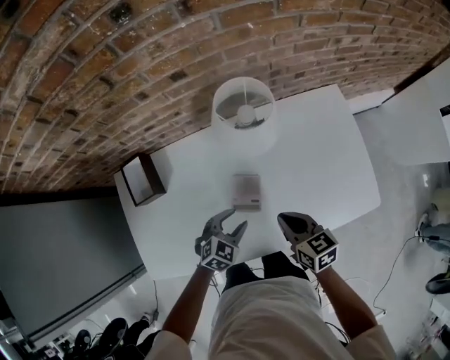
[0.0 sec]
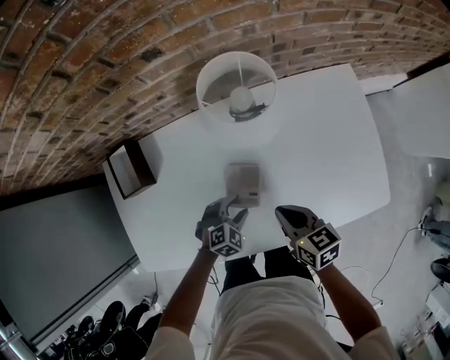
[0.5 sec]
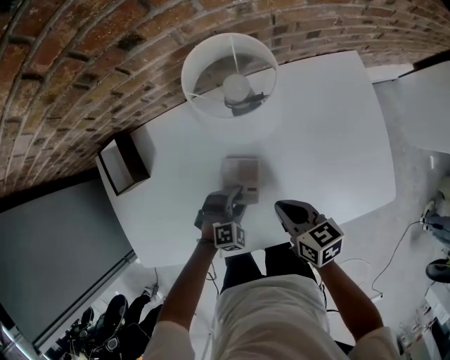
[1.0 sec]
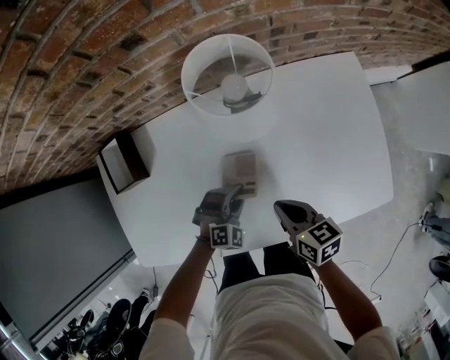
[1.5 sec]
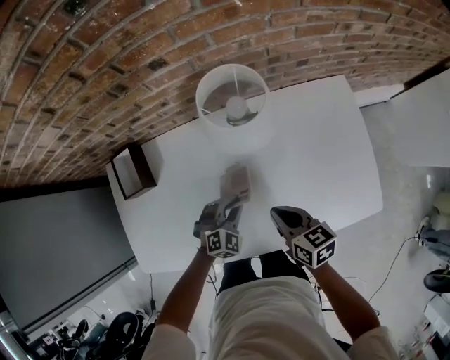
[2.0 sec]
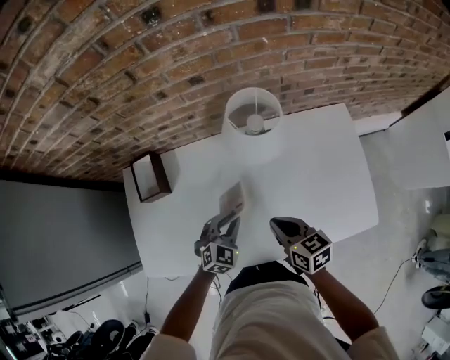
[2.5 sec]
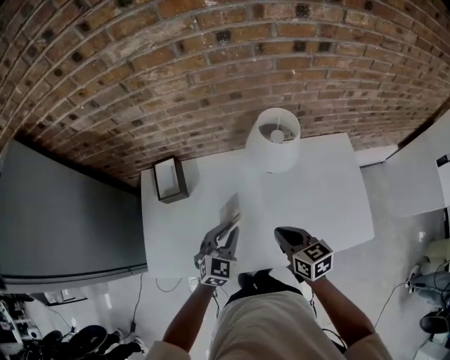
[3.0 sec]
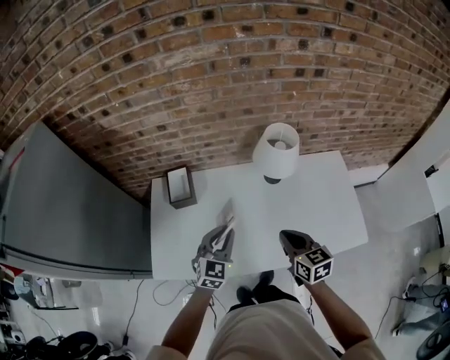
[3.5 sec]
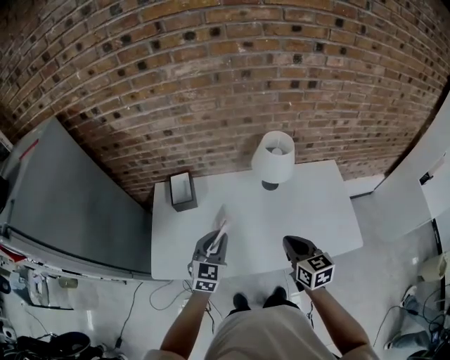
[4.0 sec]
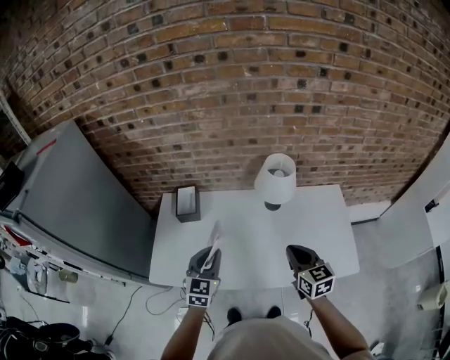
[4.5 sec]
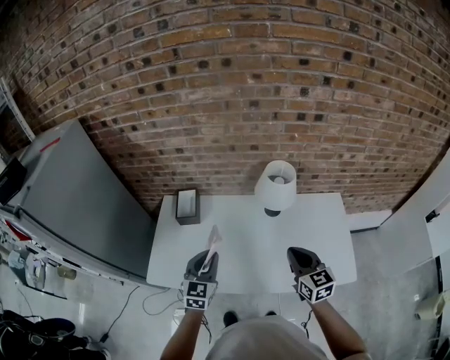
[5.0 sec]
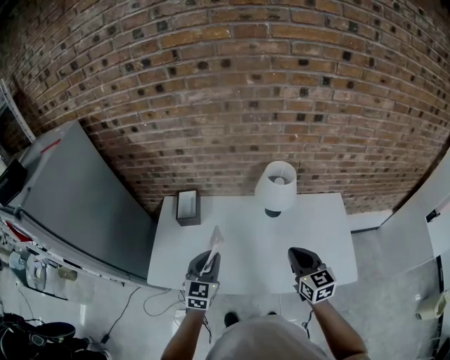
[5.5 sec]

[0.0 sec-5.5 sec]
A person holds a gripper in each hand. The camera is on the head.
0.0 sec to 2.0 sec: The left gripper travels downward by roughly 5 cm, turns by about 20 degrees, and closes.
2.0 sec to 3.5 sec: The left gripper travels upward and to the left by approximately 30 cm, and turns by roughly 40 degrees; the right gripper moves upward, to the left and backward, about 20 cm, and changes its angle by about 20 degrees.
3.5 sec to 5.5 sec: The right gripper is displaced to the right and upward by some 10 cm, while the left gripper travels upward and backward by about 10 cm.

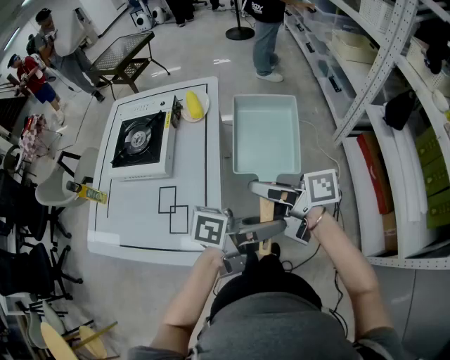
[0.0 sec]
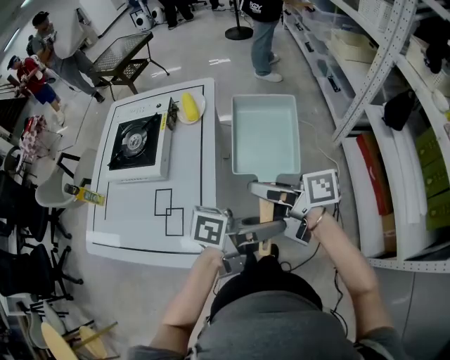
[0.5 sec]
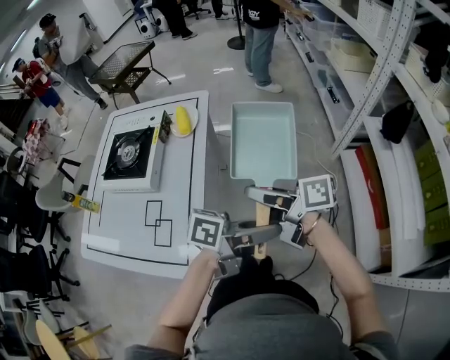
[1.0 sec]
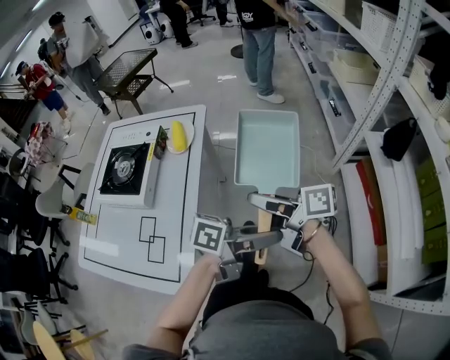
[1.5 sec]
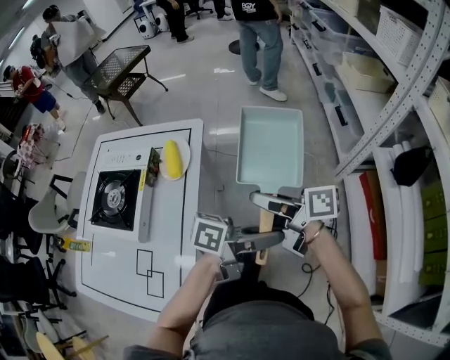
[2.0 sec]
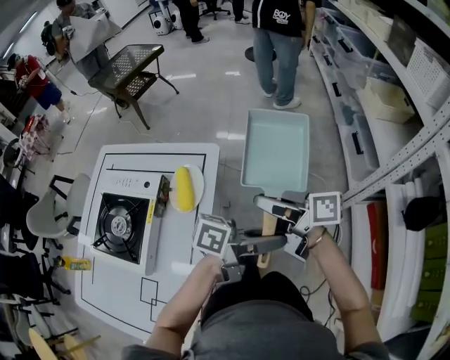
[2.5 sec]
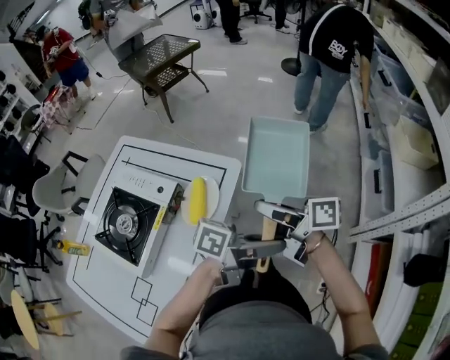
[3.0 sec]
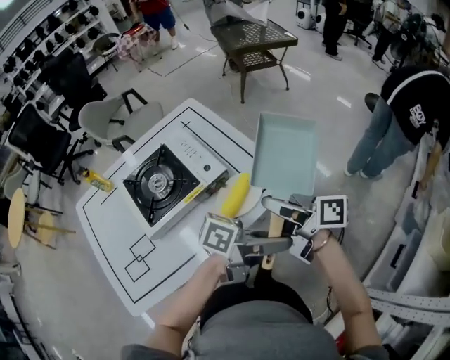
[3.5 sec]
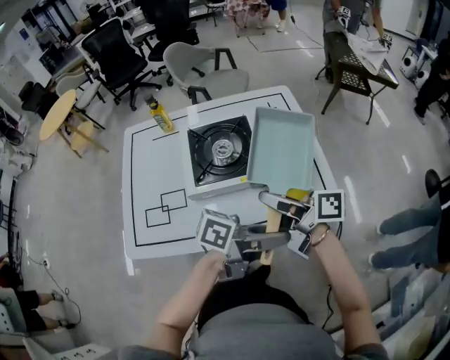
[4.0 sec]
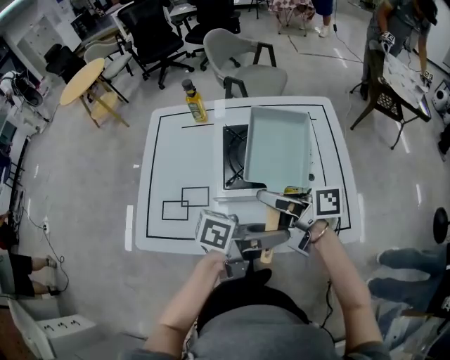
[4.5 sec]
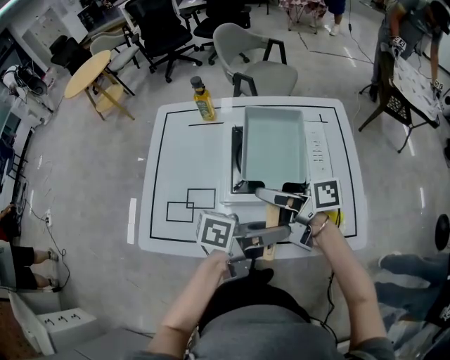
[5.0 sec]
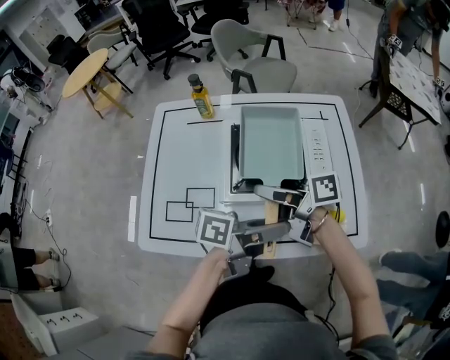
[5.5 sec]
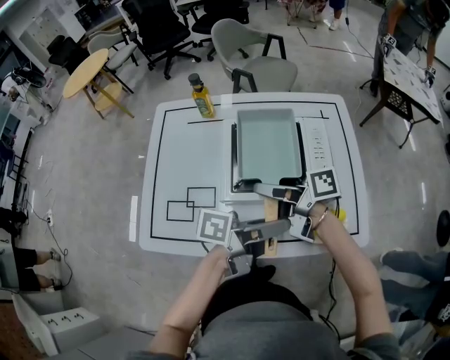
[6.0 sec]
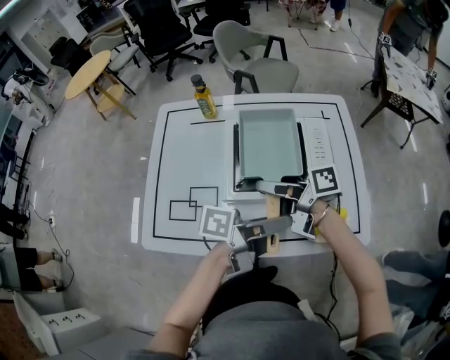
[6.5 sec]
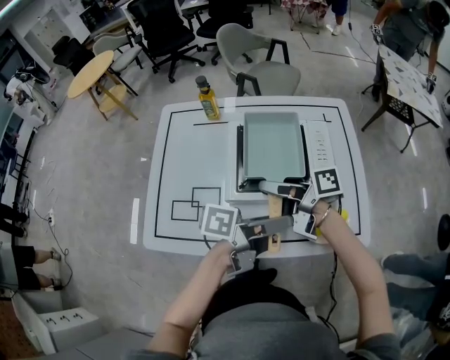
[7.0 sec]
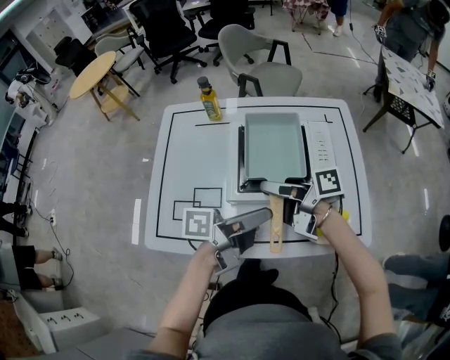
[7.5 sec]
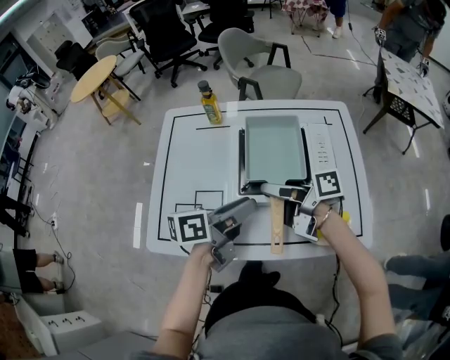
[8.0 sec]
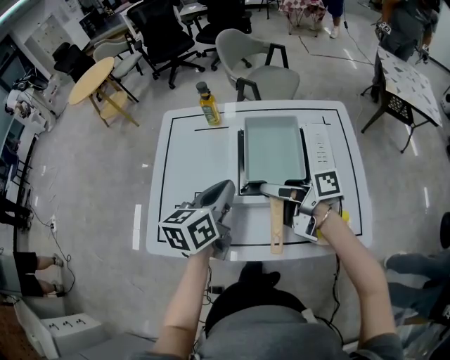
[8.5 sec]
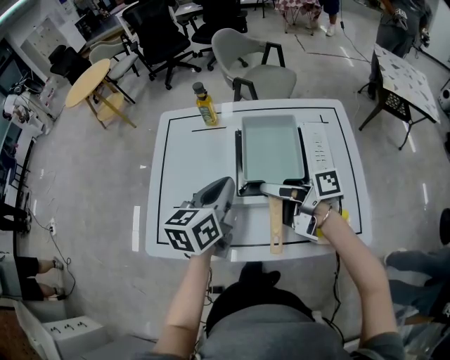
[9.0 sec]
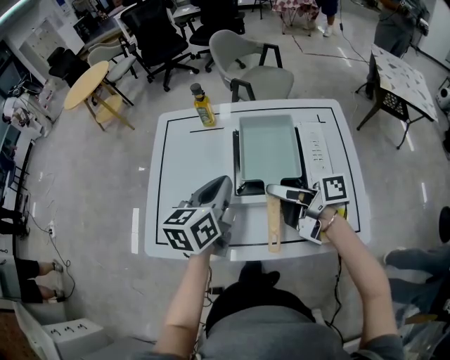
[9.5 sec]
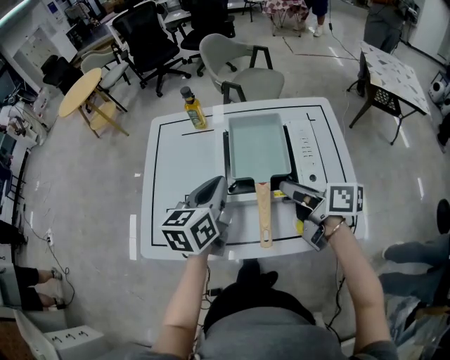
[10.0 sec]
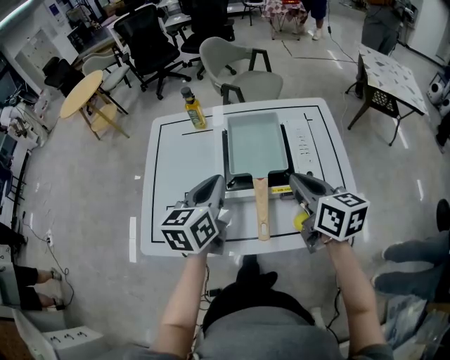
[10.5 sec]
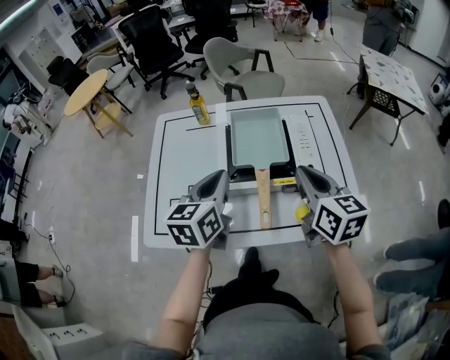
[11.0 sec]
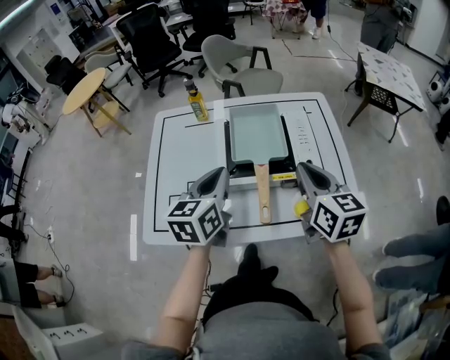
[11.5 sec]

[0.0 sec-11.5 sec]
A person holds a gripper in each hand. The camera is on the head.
0.0 sec to 2.0 sec: The left gripper ends up roughly 25 cm from where it was. Meanwhile the right gripper moves some 25 cm.
2.0 sec to 4.0 sec: The right gripper shifts by roughly 30 cm, and rotates some 70 degrees; the left gripper shifts by about 30 cm, and rotates some 70 degrees.
4.0 sec to 6.0 sec: The right gripper ends up approximately 15 cm from where it was, and changes its angle by roughly 30 degrees, while the left gripper ends up approximately 15 cm from where it was, and swivels some 30 degrees.
6.0 sec to 7.5 sec: The left gripper ends up approximately 5 cm from where it was.
7.5 sec to 9.5 sec: The left gripper changes place by roughly 15 cm, turns by about 60 degrees, and closes up.
9.5 sec to 11.5 sec: The right gripper shifts roughly 10 cm to the right and upward, swivels about 70 degrees, and closes.

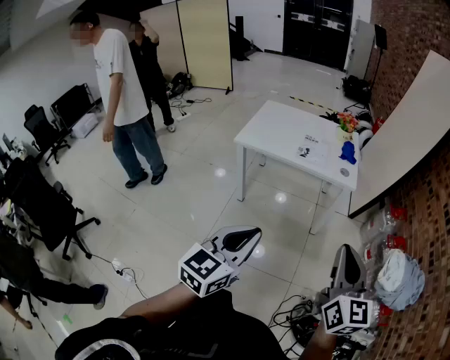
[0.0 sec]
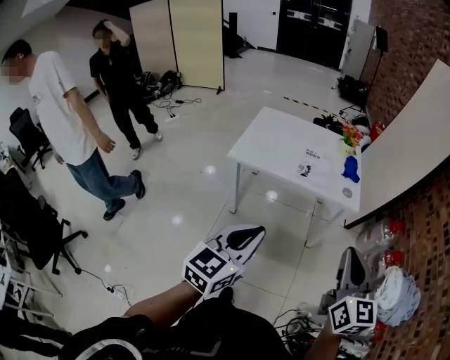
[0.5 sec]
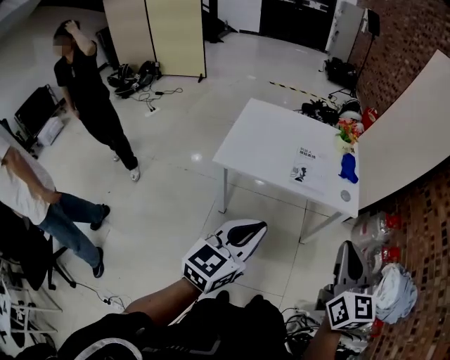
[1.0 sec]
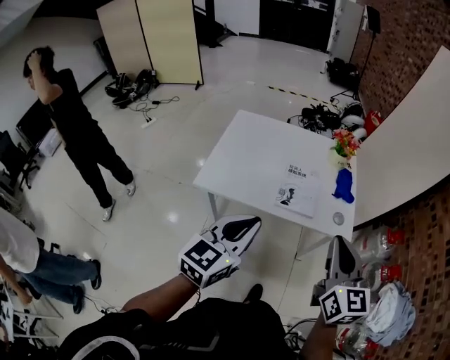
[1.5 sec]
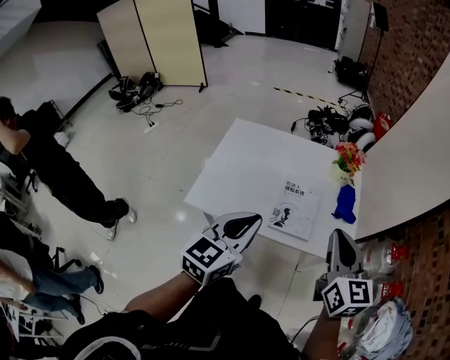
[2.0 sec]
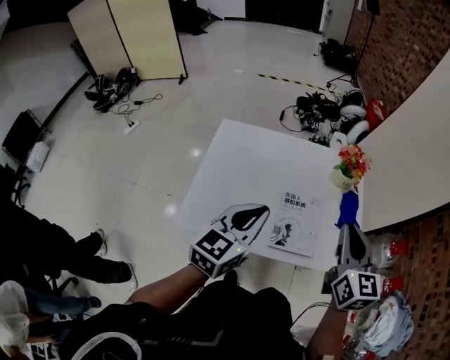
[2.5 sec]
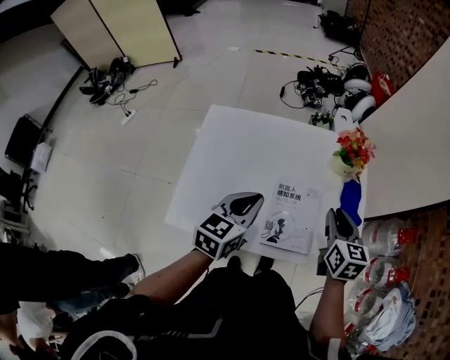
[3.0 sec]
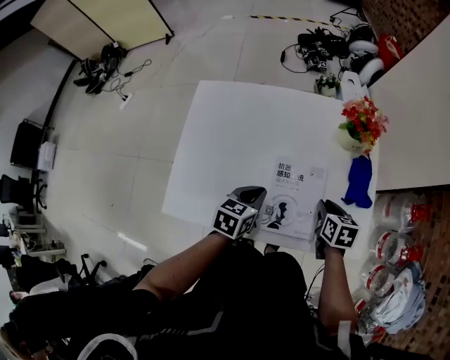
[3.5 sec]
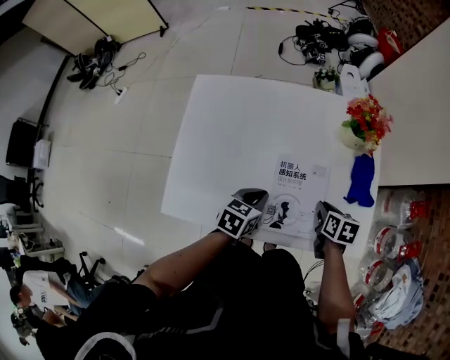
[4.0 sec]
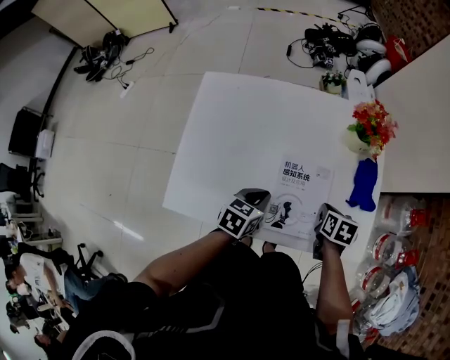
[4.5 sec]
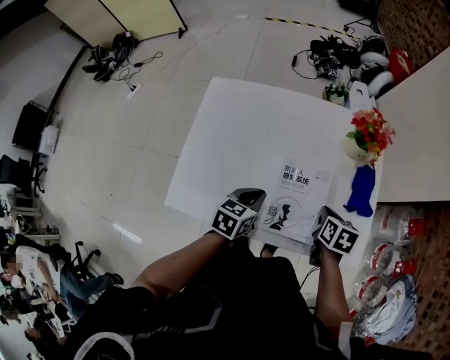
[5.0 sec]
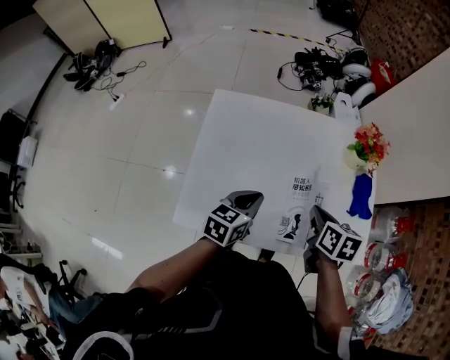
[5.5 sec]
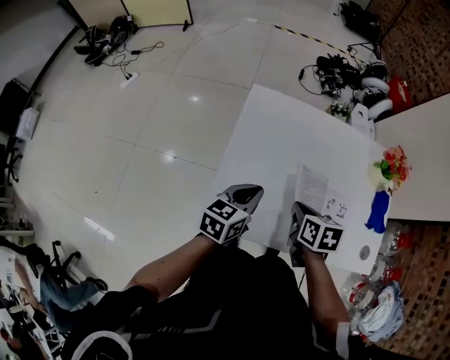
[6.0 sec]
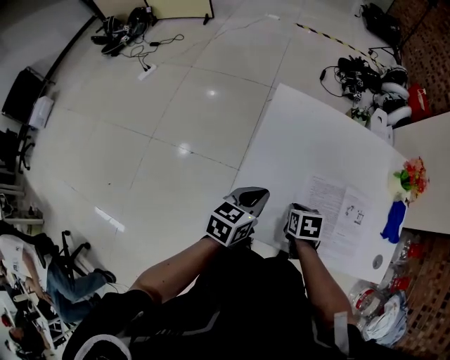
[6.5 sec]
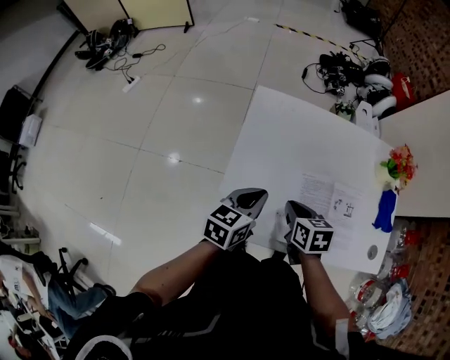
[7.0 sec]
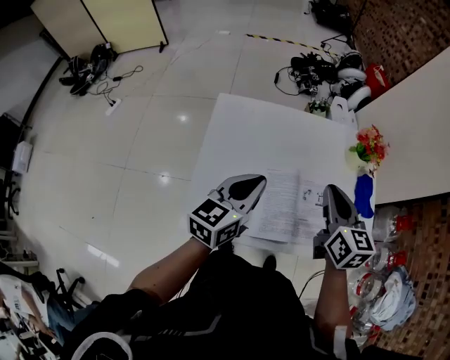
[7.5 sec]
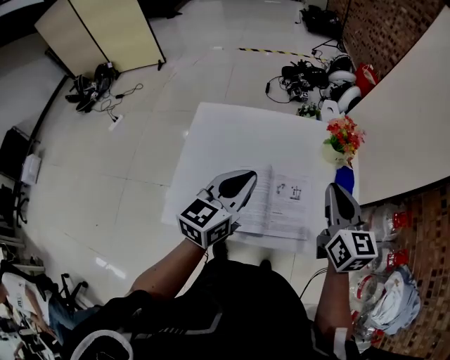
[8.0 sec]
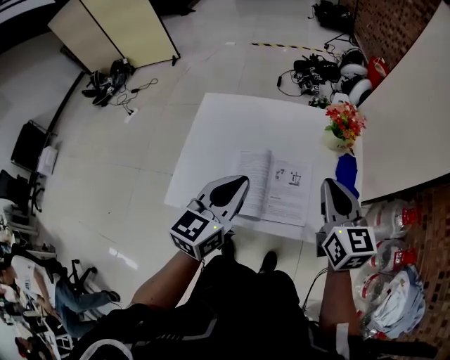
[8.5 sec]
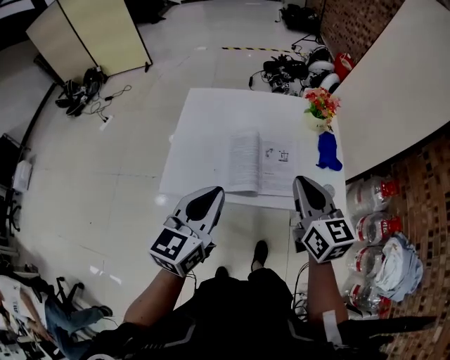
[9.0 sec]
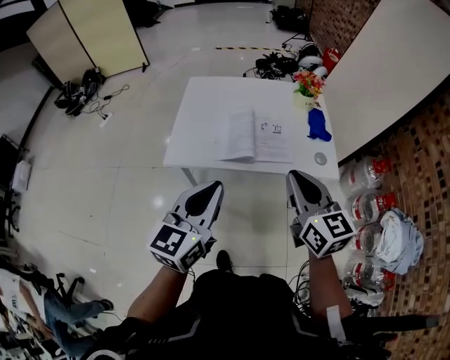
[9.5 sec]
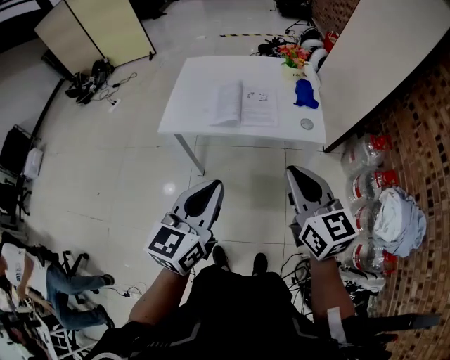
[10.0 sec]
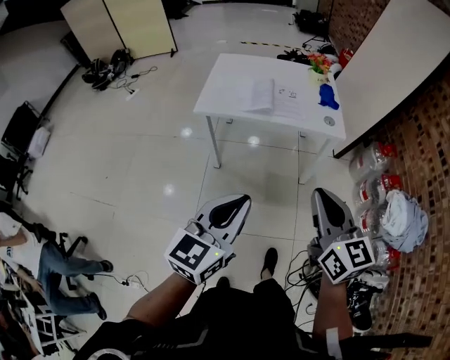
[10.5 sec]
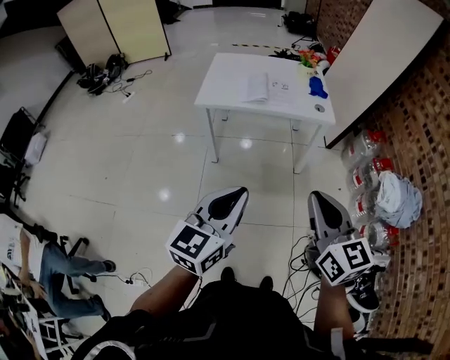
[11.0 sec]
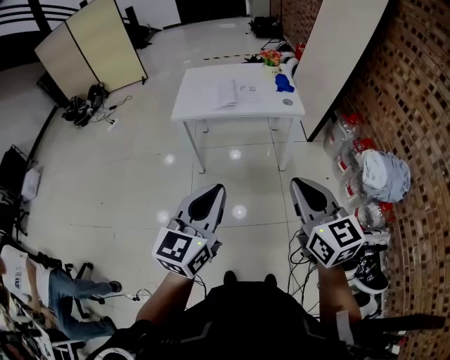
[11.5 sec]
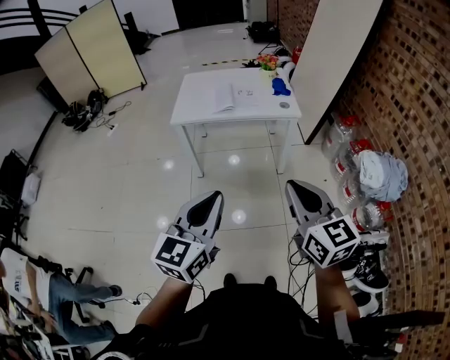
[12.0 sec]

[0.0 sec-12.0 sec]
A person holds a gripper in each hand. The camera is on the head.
0.0 sec to 2.0 sec: The pair of grippers is taken forward, about 60 cm.
2.0 sec to 4.0 sec: The grippers both shift downward and forward by some 40 cm. The right gripper angles its fingers downward, by some 50 degrees. The left gripper points its fingers some 30 degrees further downward.
4.0 sec to 6.0 sec: The left gripper heads to the left and upward, covering some 25 cm, and changes its angle by roughly 20 degrees. Meanwhile the right gripper goes about 30 cm to the left.
6.0 sec to 8.0 sec: Both grippers travel together to the right and upward, roughly 30 cm. The left gripper rotates approximately 20 degrees. Meanwhile the right gripper tilts its fingers some 40 degrees upward.
8.0 sec to 10.0 sec: Both grippers are carried backward, about 50 cm.
10.0 sec to 12.0 sec: Both grippers travel together backward, roughly 35 cm.
